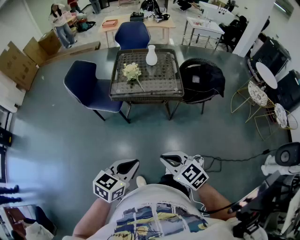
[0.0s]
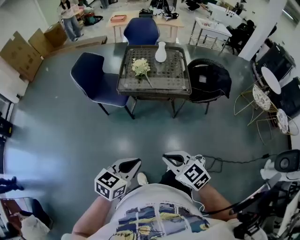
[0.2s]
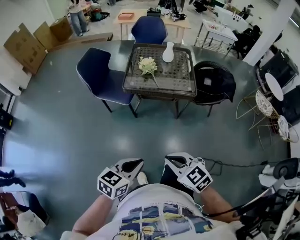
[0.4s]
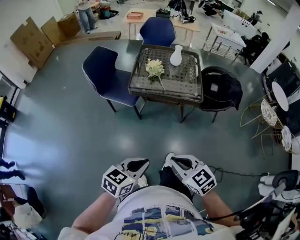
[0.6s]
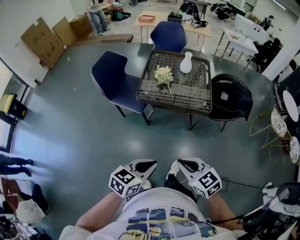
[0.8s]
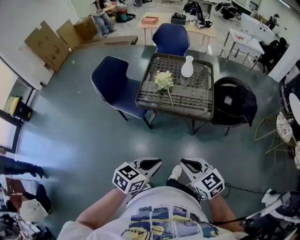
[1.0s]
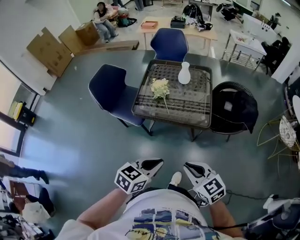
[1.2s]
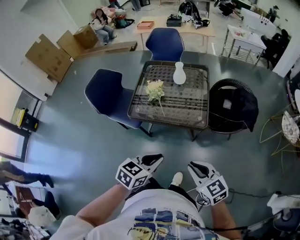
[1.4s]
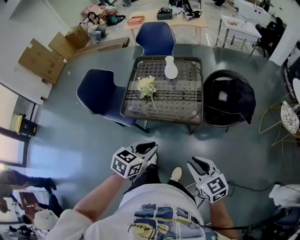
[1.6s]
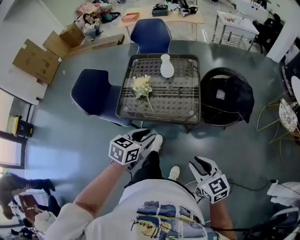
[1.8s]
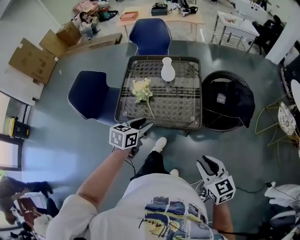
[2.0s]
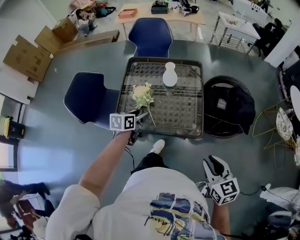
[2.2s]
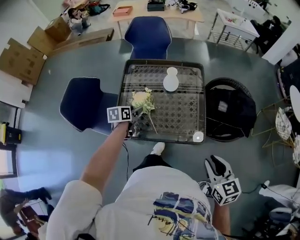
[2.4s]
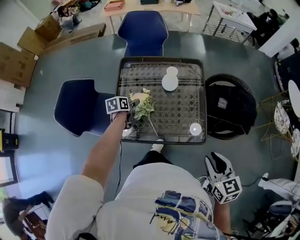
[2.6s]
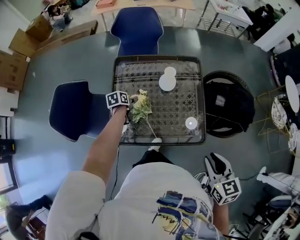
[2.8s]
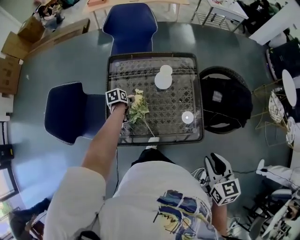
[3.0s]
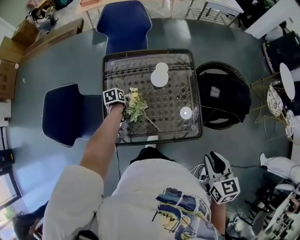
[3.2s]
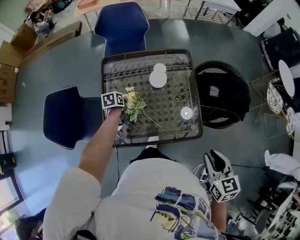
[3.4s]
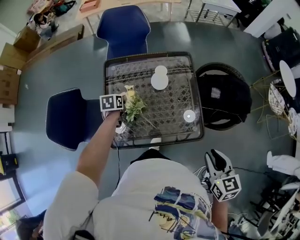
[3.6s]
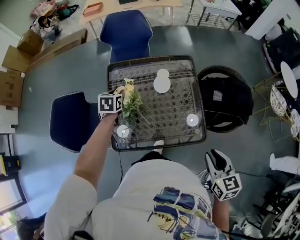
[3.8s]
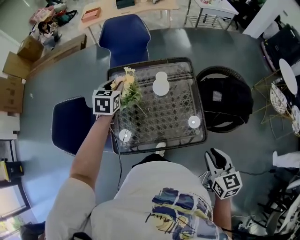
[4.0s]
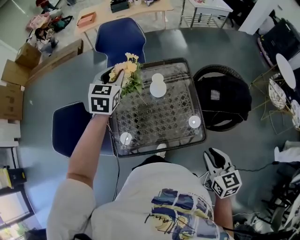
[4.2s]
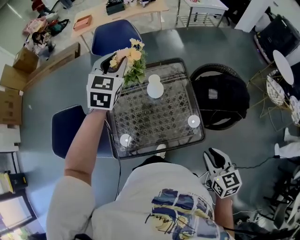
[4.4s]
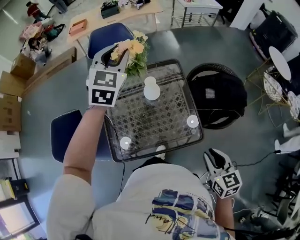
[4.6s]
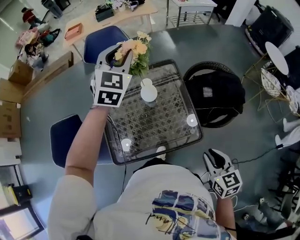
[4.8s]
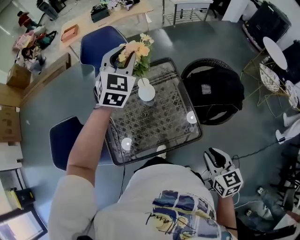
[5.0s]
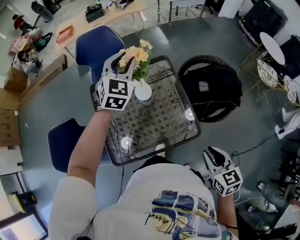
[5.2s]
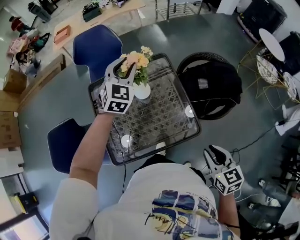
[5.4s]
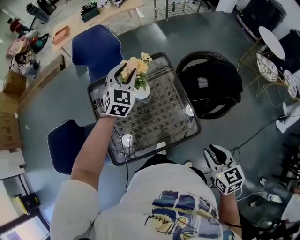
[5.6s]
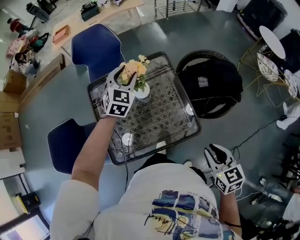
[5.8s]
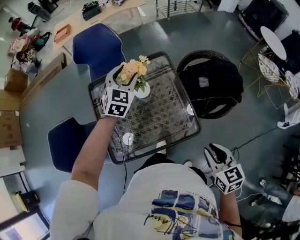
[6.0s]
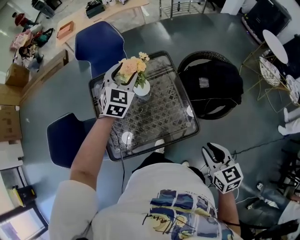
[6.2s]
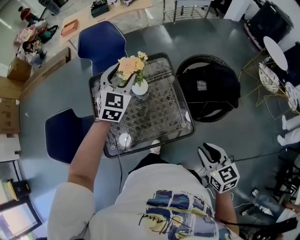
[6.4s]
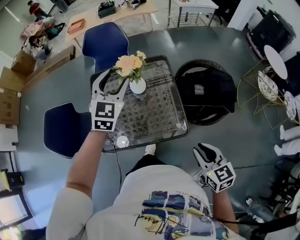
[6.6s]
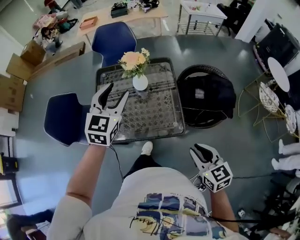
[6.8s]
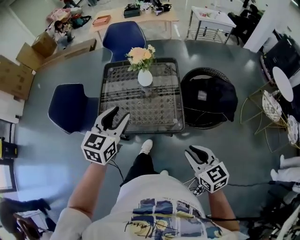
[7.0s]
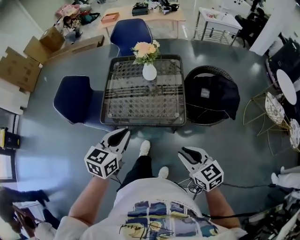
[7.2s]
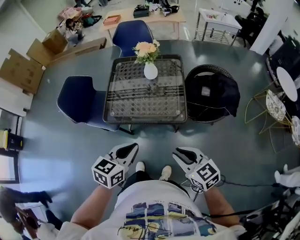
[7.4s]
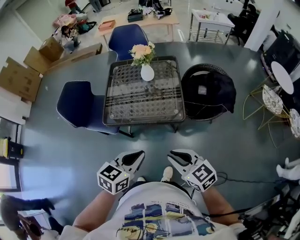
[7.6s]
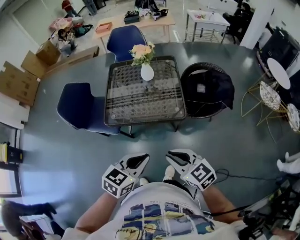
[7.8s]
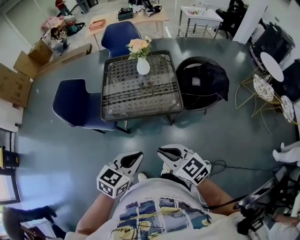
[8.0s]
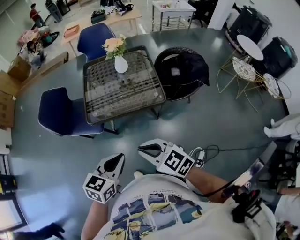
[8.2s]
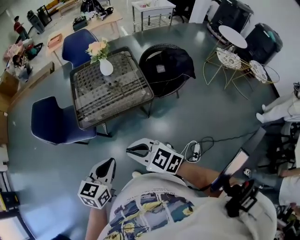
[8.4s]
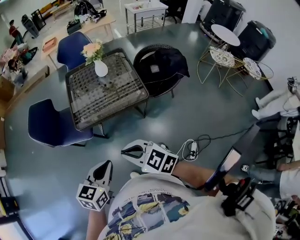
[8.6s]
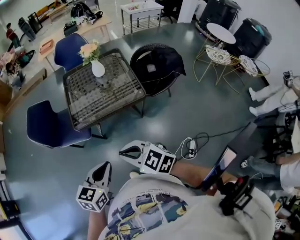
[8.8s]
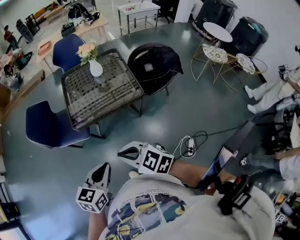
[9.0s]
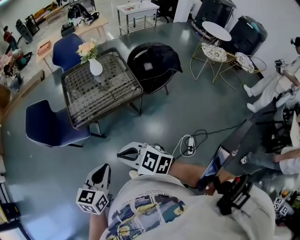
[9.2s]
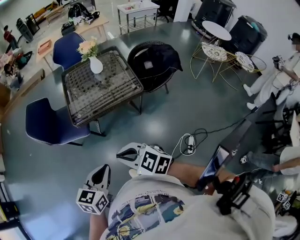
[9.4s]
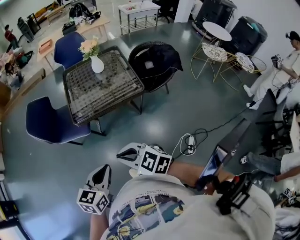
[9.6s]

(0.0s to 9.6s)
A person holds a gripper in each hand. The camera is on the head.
0.0s - 1.6s: Both grippers move forward and to the right, some 30 cm.
1.6s - 3.2s: The left gripper shifts some 60 cm forward, downward and to the left, swivels roughly 50 degrees, and opens its fingers; the right gripper moves forward, approximately 25 cm, and changes its angle by roughly 40 degrees.
3.2s - 4.8s: The left gripper shifts some 50 cm upward, and twists roughly 70 degrees clockwise, seen from behind.
4.8s - 6.4s: The left gripper goes approximately 10 cm downward and backward.
6.4s - 8.0s: The right gripper is displaced backward and to the left by some 30 cm, and changes its angle by roughly 40 degrees. The left gripper shifts approximately 60 cm backward, turns by roughly 40 degrees, and closes.
8.0s - 9.6s: The two grippers go about 15 cm to the left and backward.

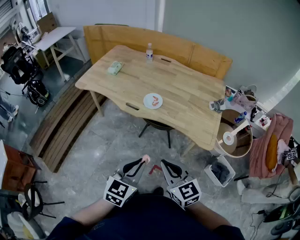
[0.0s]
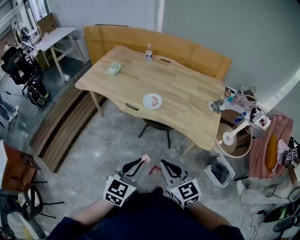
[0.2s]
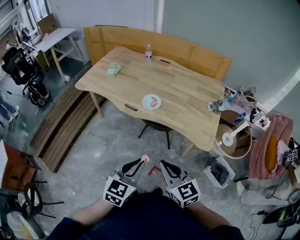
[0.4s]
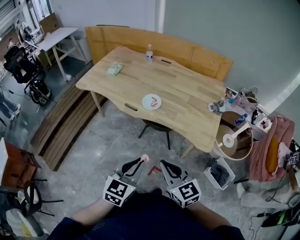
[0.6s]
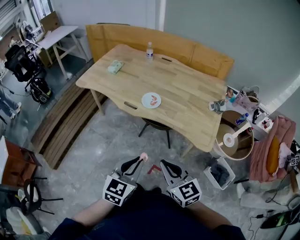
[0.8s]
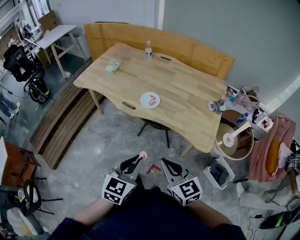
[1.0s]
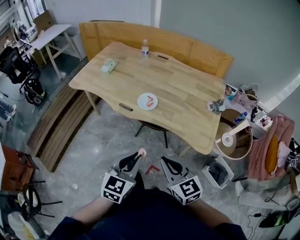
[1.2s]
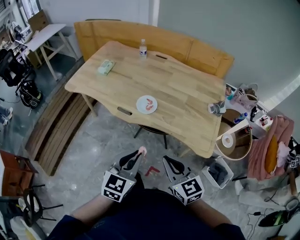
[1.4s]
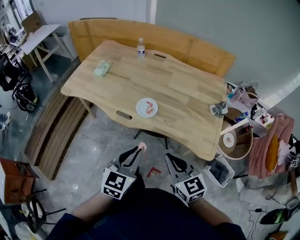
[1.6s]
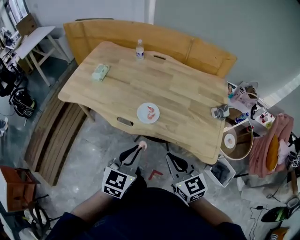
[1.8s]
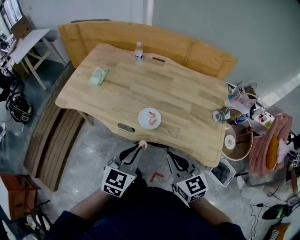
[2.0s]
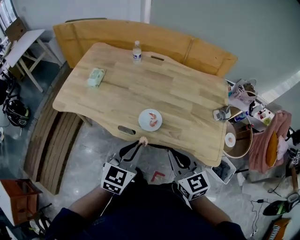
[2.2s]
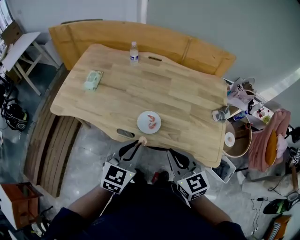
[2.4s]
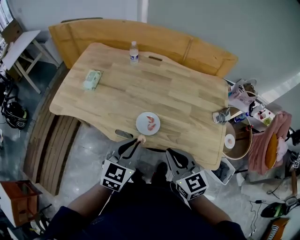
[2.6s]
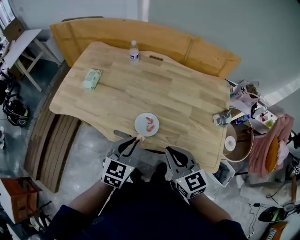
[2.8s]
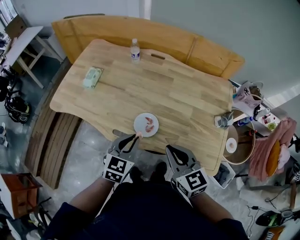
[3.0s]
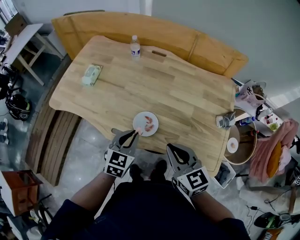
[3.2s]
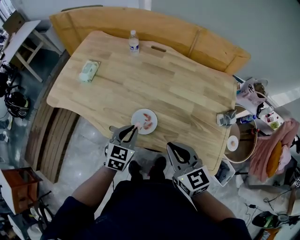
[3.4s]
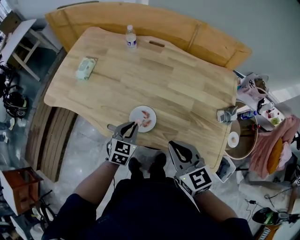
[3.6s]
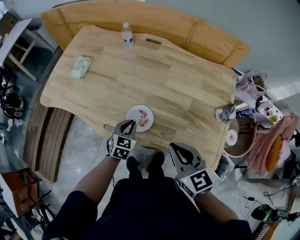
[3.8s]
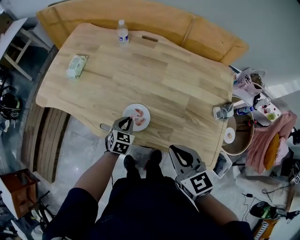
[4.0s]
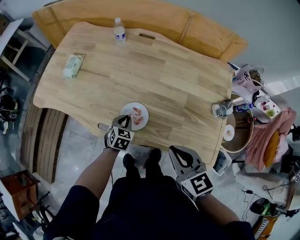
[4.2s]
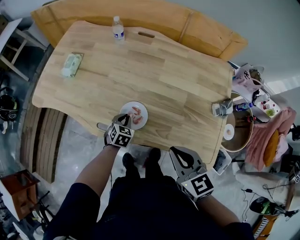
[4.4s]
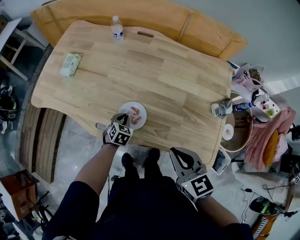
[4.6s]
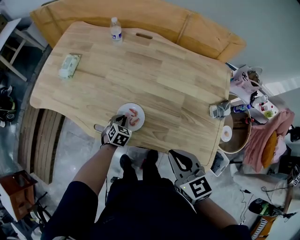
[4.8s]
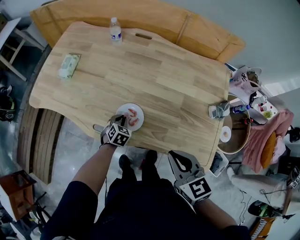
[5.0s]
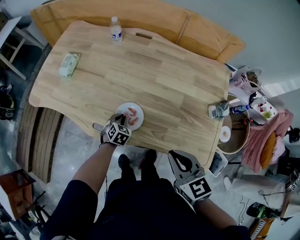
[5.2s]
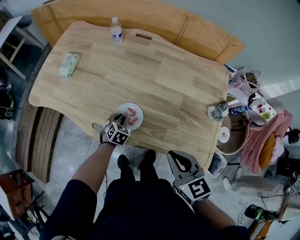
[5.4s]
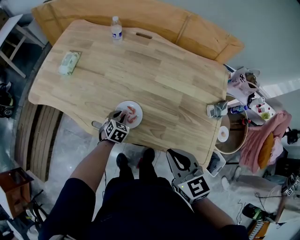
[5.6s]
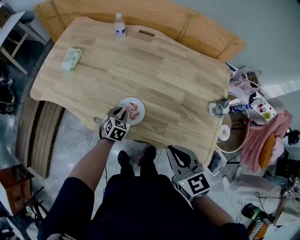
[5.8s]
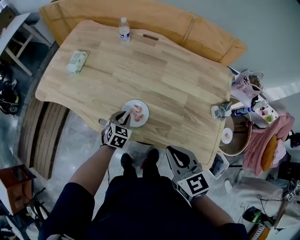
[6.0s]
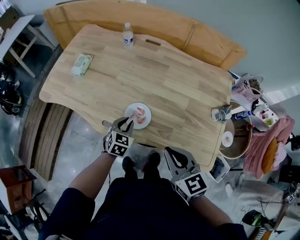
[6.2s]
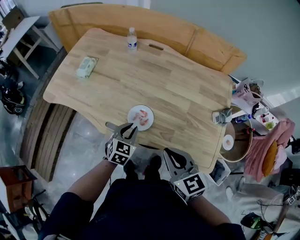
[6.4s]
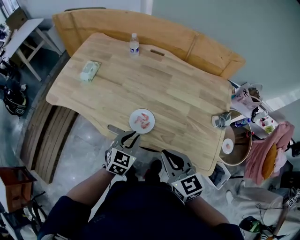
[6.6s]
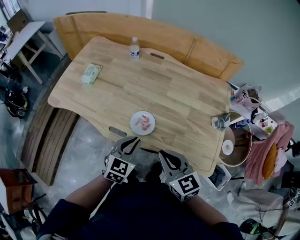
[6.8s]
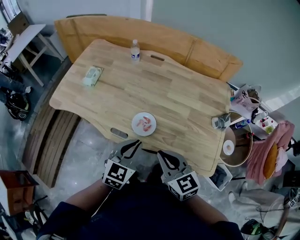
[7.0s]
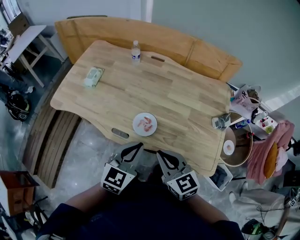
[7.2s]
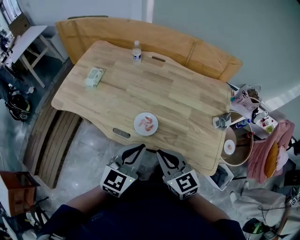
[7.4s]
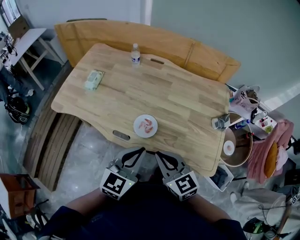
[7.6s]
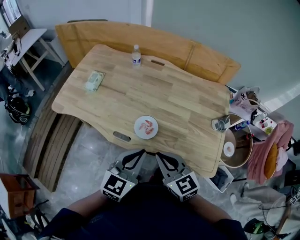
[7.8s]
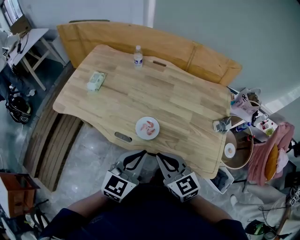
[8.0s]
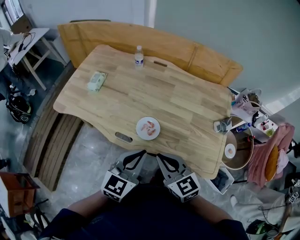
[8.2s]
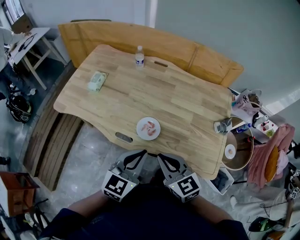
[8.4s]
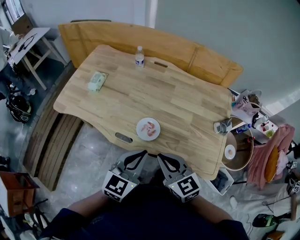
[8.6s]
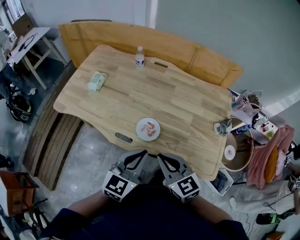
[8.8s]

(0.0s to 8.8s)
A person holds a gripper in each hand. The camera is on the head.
0.0s - 1.4s: The two grippers go approximately 10 cm forward.
1.4s - 3.0s: Both grippers travel together forward, approximately 25 cm.
3.0s - 4.4s: The right gripper moves to the right and downward, some 10 cm; the left gripper shifts roughly 25 cm downward and forward, and turns by roughly 20 degrees.
4.4s - 5.8s: The grippers move only a little.
5.8s - 7.4s: The right gripper travels to the left by approximately 10 cm; the left gripper shifts some 35 cm upward and backward, and tilts its fingers about 30 degrees upward.
7.4s - 8.8s: There are only small adjustments of the grippers.

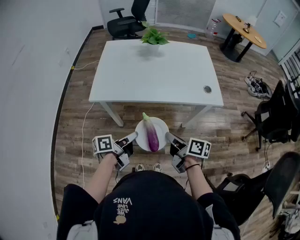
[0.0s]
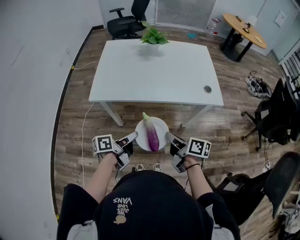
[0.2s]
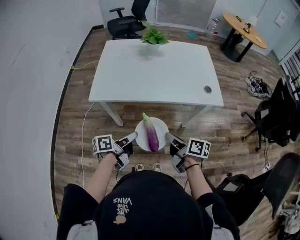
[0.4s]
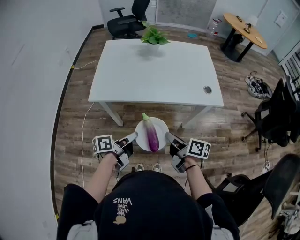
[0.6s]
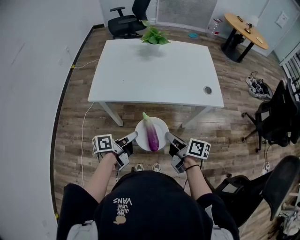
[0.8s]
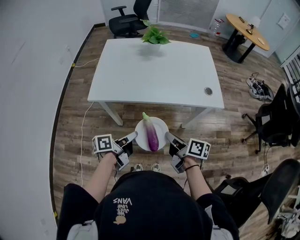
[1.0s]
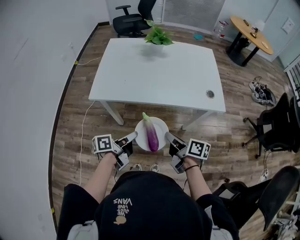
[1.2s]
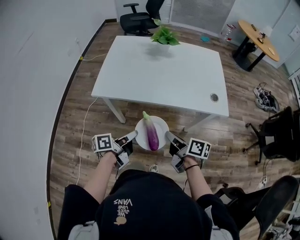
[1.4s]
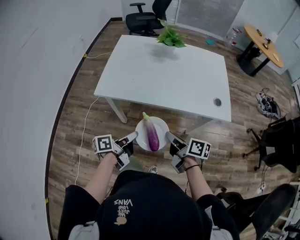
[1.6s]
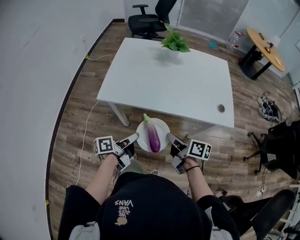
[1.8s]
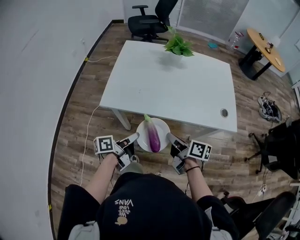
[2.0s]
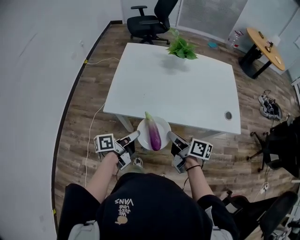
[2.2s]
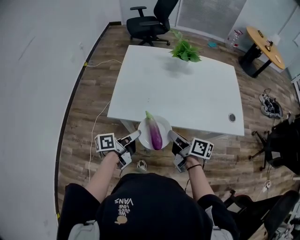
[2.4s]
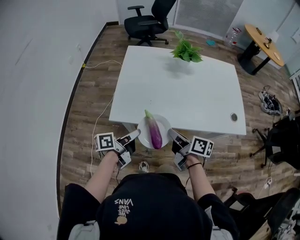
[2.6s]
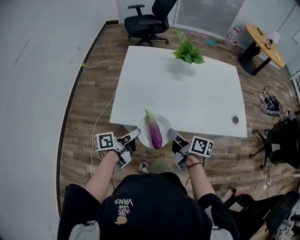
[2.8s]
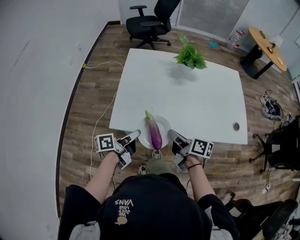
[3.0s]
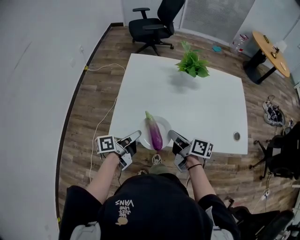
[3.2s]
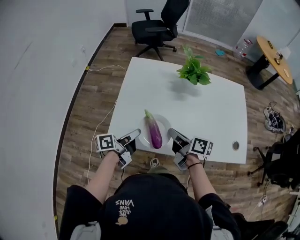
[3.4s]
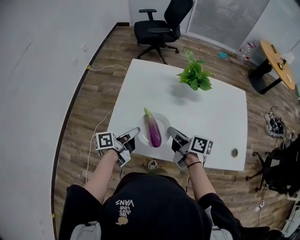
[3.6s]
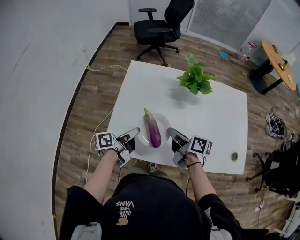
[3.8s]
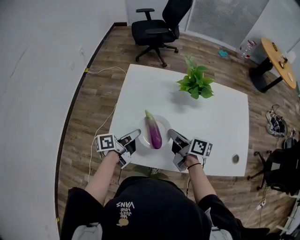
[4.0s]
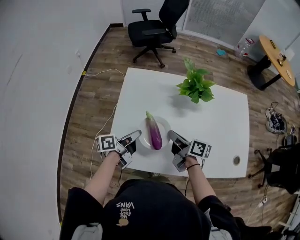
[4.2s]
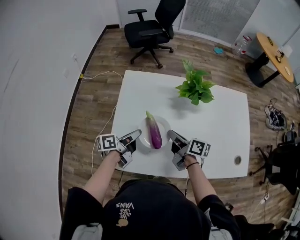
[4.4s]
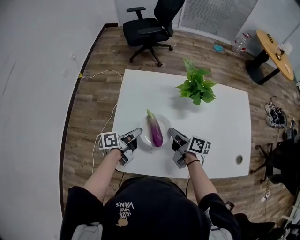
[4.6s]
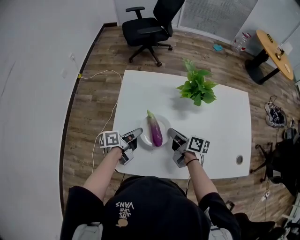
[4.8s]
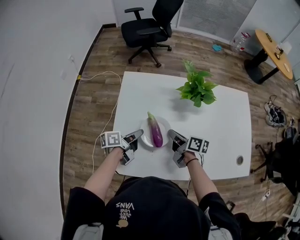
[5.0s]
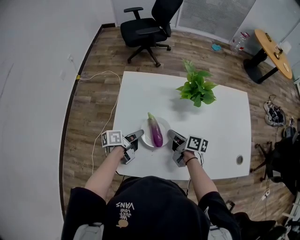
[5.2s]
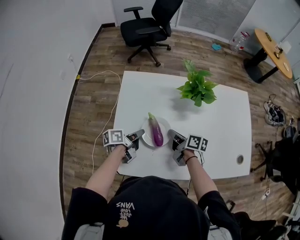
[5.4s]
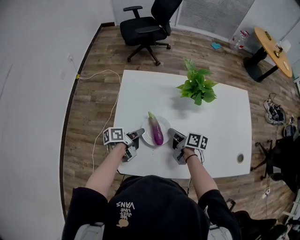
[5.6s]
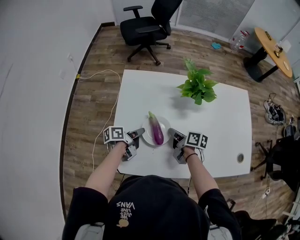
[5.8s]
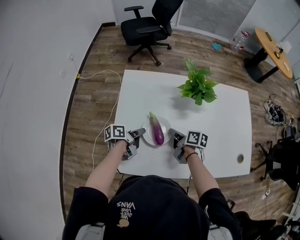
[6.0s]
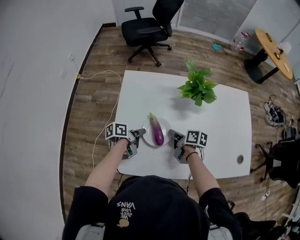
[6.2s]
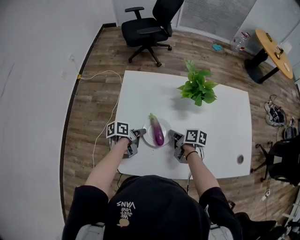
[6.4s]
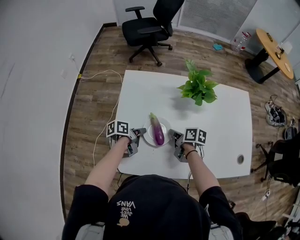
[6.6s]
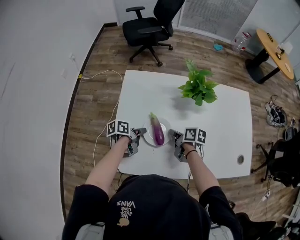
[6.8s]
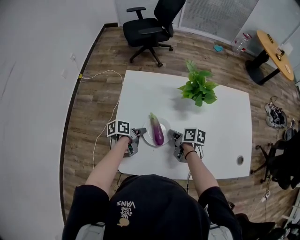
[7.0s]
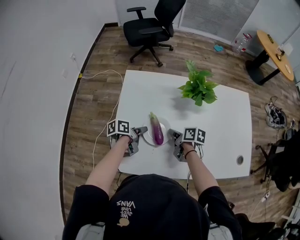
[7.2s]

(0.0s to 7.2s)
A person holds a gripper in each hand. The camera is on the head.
0.0s - 1.4s: The grippers make only small movements.
1.4s - 2.8s: The two grippers go approximately 25 cm forward and to the left.
2.8s - 4.4s: Both grippers move forward, about 25 cm.
4.4s - 5.8s: Both grippers move downward, some 10 cm.
5.8s - 7.2s: The grippers stay close to where they were, moving slightly.
